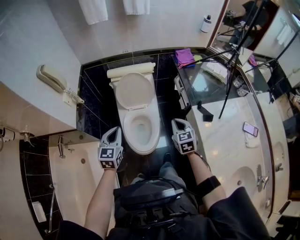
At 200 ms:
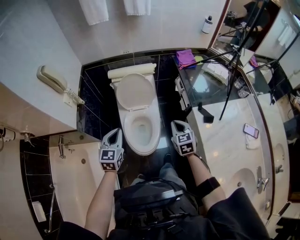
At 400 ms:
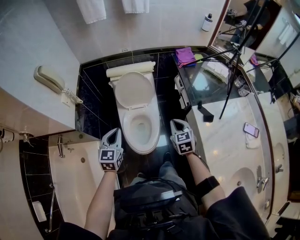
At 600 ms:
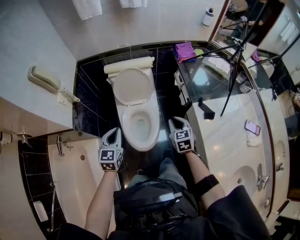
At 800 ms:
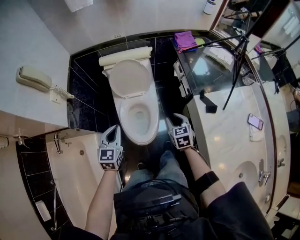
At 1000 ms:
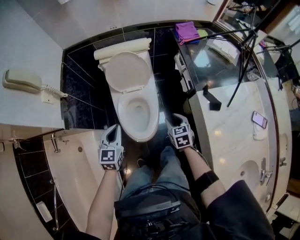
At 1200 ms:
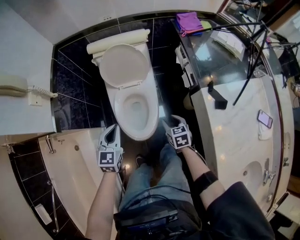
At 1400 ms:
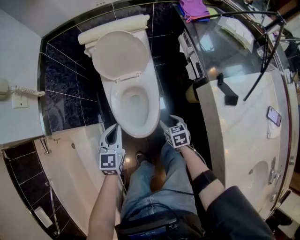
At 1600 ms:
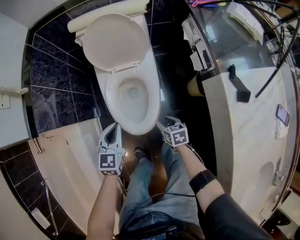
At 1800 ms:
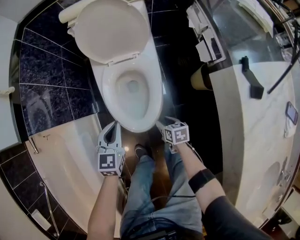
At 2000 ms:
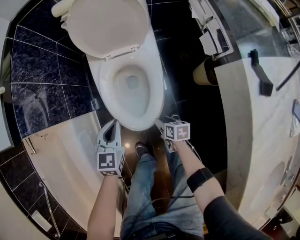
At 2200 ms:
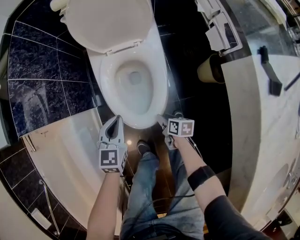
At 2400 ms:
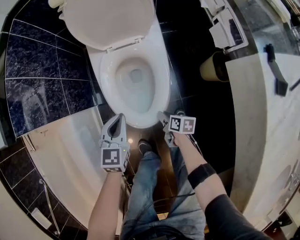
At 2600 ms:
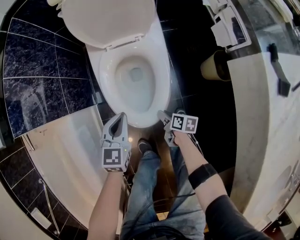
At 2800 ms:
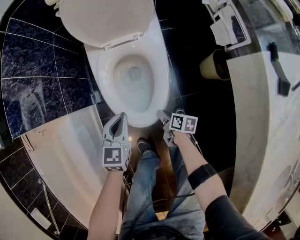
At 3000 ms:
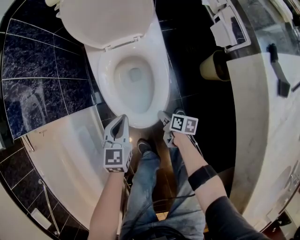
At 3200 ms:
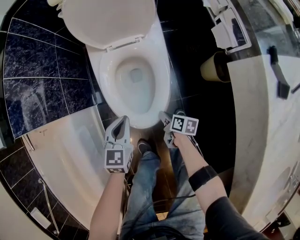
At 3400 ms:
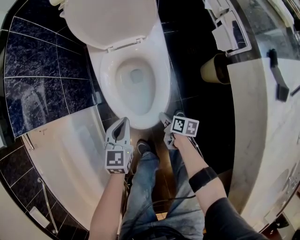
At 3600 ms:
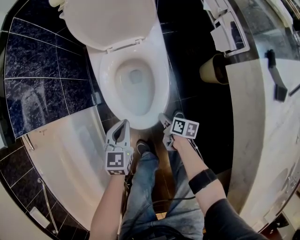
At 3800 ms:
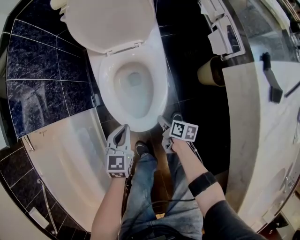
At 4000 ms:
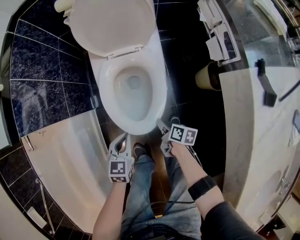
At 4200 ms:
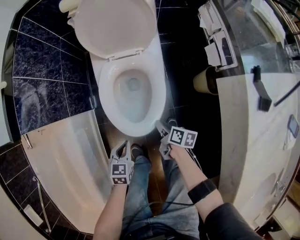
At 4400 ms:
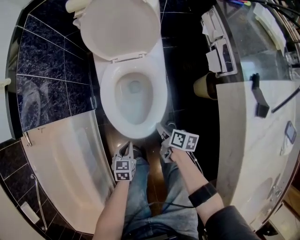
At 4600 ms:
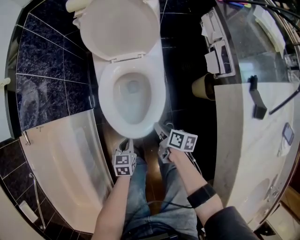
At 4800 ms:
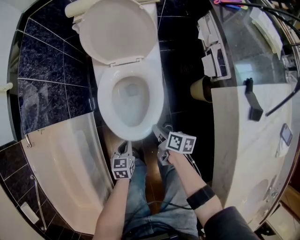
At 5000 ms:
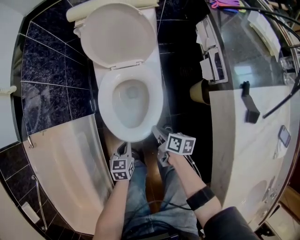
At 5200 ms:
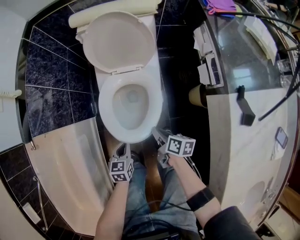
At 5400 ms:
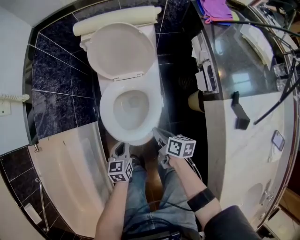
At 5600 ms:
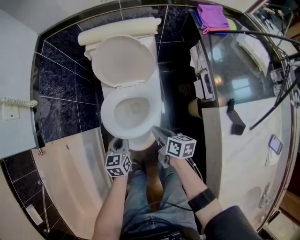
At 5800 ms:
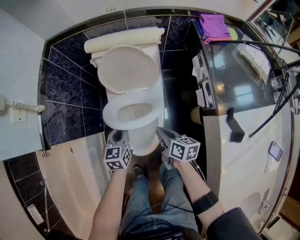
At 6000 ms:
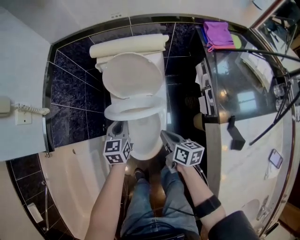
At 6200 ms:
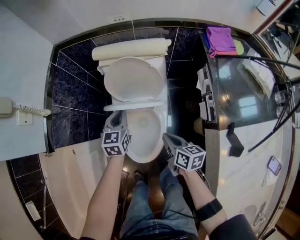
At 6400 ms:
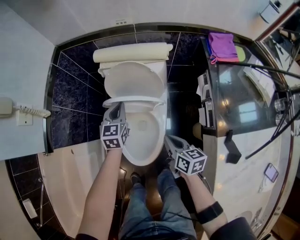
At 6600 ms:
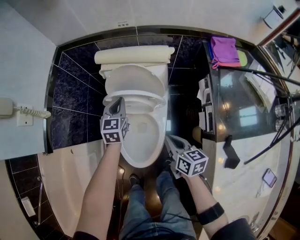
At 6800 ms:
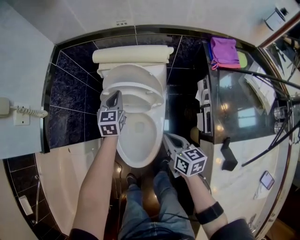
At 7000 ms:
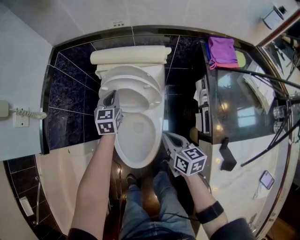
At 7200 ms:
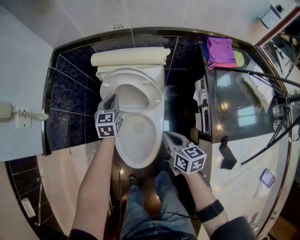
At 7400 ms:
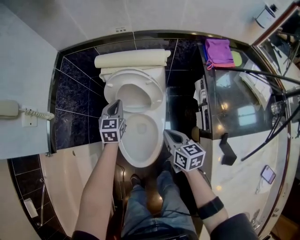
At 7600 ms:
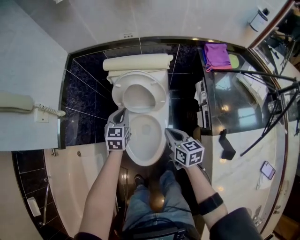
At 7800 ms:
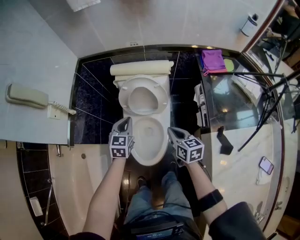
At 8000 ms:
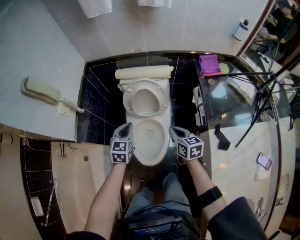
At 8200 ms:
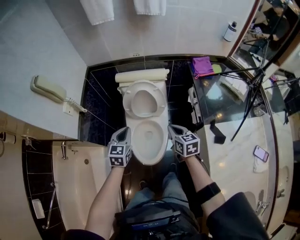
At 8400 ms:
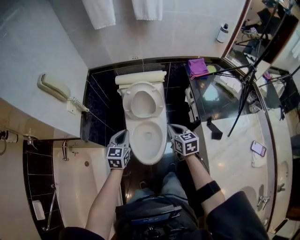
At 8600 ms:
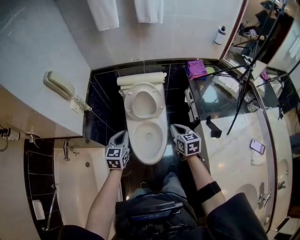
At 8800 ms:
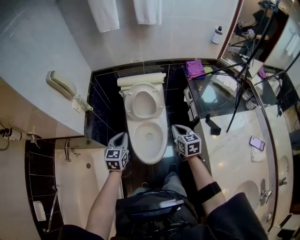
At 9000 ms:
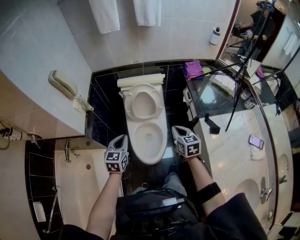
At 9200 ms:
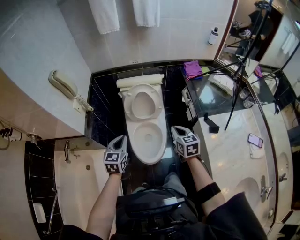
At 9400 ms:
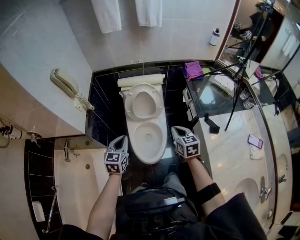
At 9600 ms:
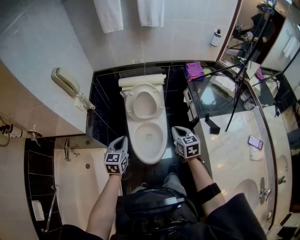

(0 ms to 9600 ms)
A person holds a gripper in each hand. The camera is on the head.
0 ms - 1600 ms: Both grippers travel together downward, roughly 35 cm. The right gripper turns by some 40 degrees, and opens its fingers.
1600 ms - 3200 ms: The two grippers go approximately 15 cm downward. The right gripper changes its angle by about 40 degrees, and closes its fingers.
3200 ms - 4800 ms: The left gripper heads backward, covering some 5 cm, and swivels some 20 degrees; the right gripper is displaced upward by approximately 15 cm.
4800 ms - 6400 ms: The left gripper is displaced forward and upward by approximately 40 cm, and rotates approximately 30 degrees. Meanwhile the right gripper shifts about 25 cm upward and forward, and rotates approximately 30 degrees.
6400 ms - 8000 ms: The right gripper moves upward, about 15 cm, while the left gripper goes approximately 20 cm upward and backward.
8000 ms - 9600 ms: The left gripper heads backward, upward and to the left, covering approximately 20 cm. The right gripper travels backward and upward by some 15 cm.

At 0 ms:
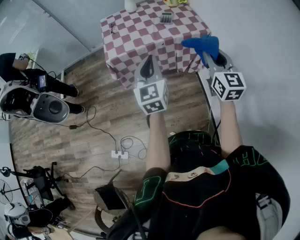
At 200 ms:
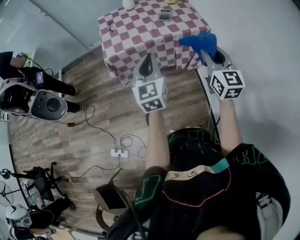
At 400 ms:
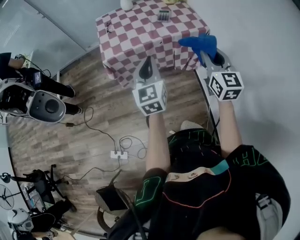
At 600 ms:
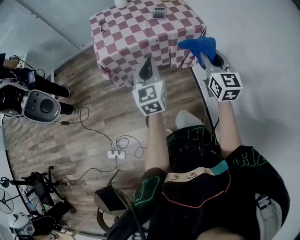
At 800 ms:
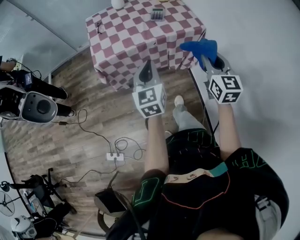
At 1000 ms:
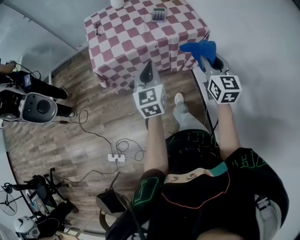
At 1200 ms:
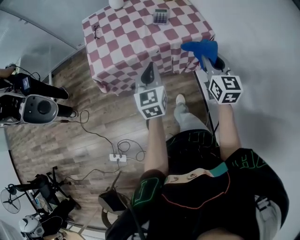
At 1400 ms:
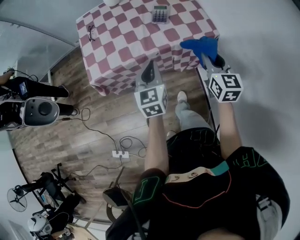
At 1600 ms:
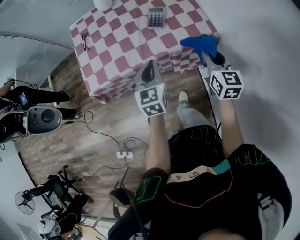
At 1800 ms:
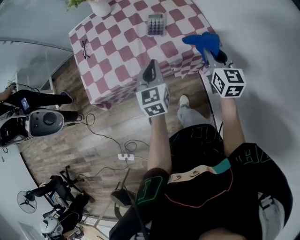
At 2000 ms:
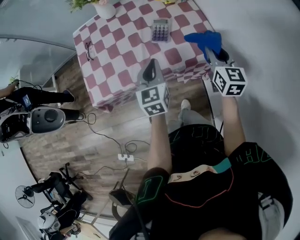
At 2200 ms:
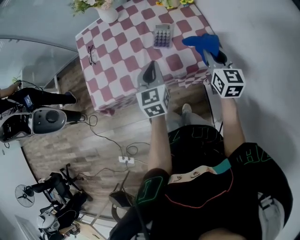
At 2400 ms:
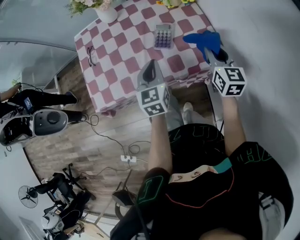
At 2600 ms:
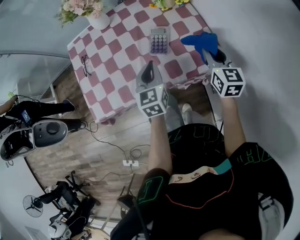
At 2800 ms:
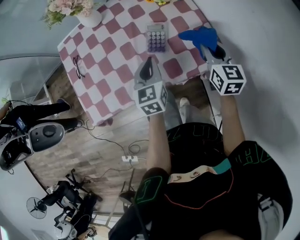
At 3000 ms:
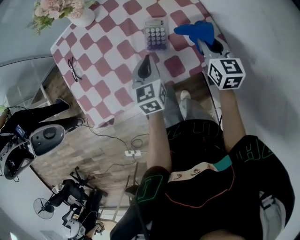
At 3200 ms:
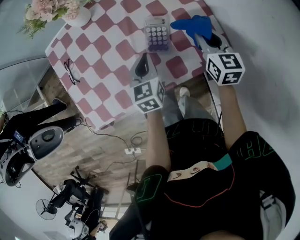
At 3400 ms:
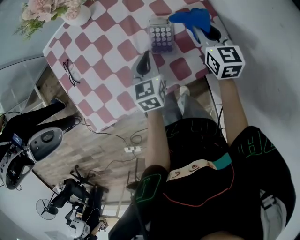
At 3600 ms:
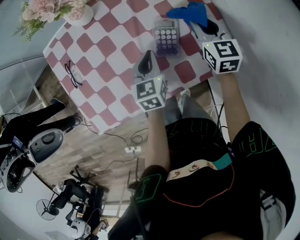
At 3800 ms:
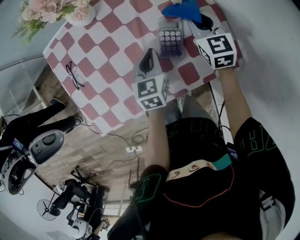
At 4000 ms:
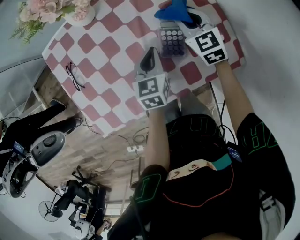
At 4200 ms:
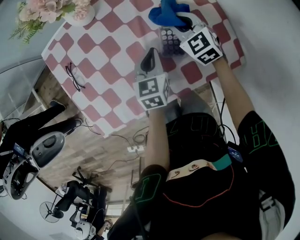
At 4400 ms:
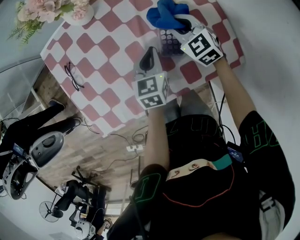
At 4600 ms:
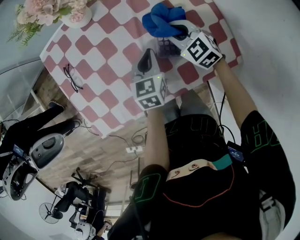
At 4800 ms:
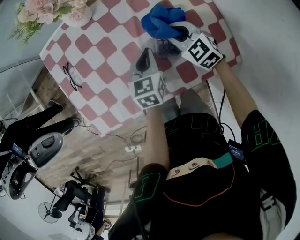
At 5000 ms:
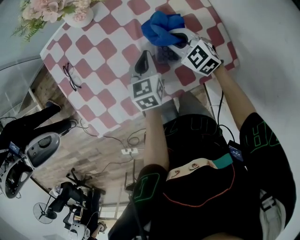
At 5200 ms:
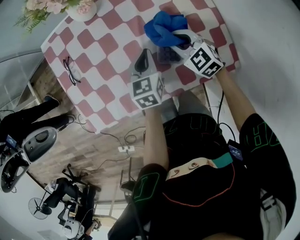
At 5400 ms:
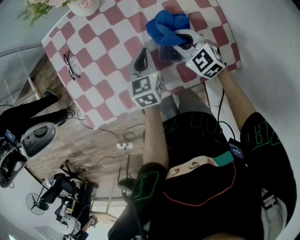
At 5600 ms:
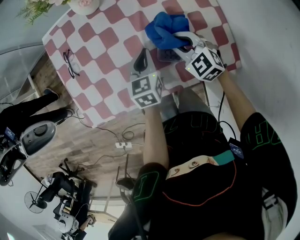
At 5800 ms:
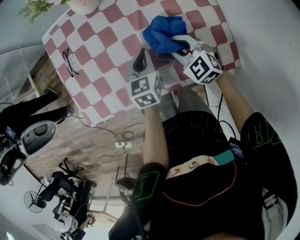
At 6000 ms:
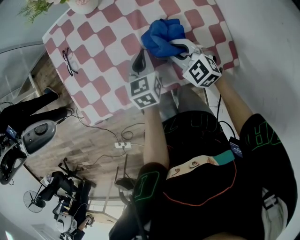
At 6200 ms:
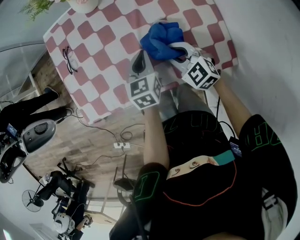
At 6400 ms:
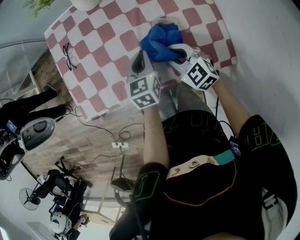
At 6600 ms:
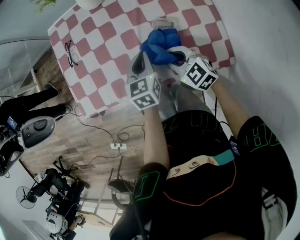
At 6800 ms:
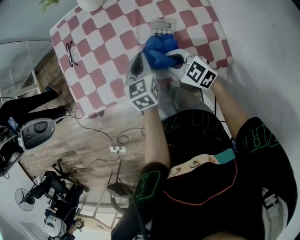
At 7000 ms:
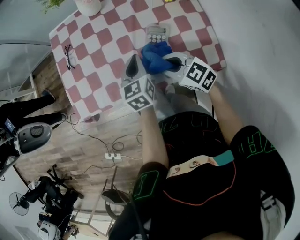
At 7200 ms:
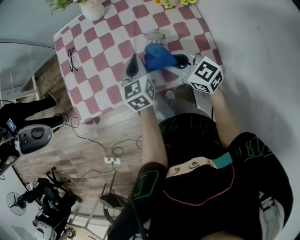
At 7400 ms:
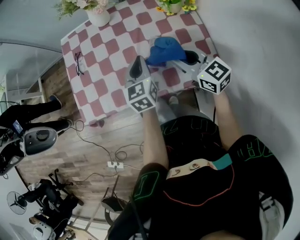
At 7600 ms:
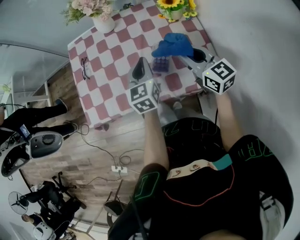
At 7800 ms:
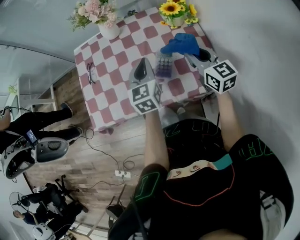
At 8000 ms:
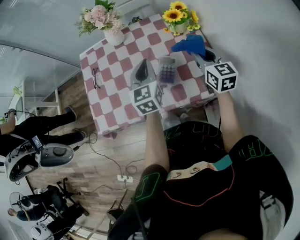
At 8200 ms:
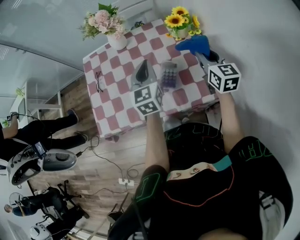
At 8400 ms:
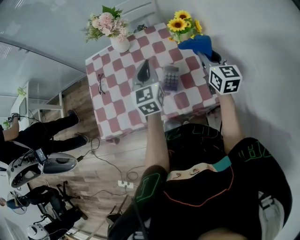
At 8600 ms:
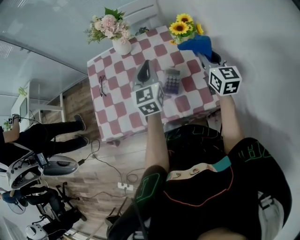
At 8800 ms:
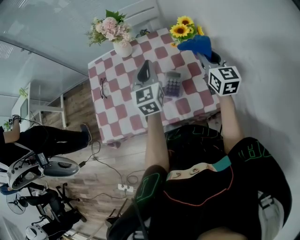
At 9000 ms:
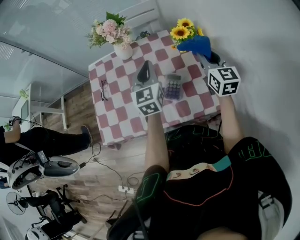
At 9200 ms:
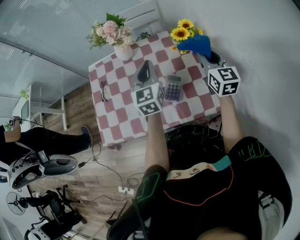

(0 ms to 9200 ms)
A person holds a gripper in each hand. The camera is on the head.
0 ms - 1600 ms: The two grippers go about 30 cm forward and downward. The left gripper swivels approximately 20 degrees.
1600 ms - 3000 ms: Both grippers travel together forward, about 20 cm.
3000 ms - 4600 ms: The right gripper moves to the left, forward and downward, roughly 20 cm, and swivels some 50 degrees; the left gripper travels forward by some 5 cm.
4600 ms - 6200 ms: The right gripper travels backward by about 10 cm.
6200 ms - 7600 ms: The left gripper travels upward by roughly 10 cm, while the right gripper shifts approximately 15 cm upward and to the right, and turns by approximately 40 degrees.
7600 ms - 9200 ms: The left gripper goes roughly 10 cm upward and forward. The right gripper goes roughly 15 cm forward, to the right and upward, and rotates approximately 30 degrees.

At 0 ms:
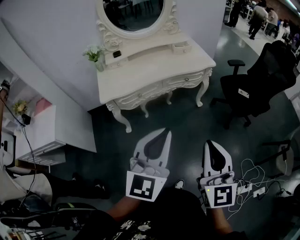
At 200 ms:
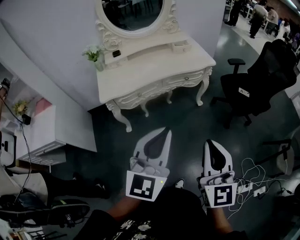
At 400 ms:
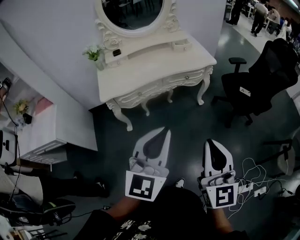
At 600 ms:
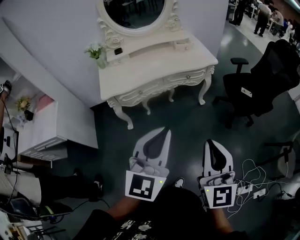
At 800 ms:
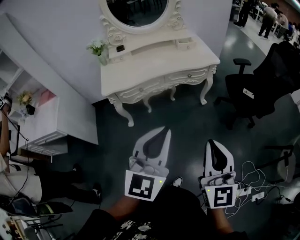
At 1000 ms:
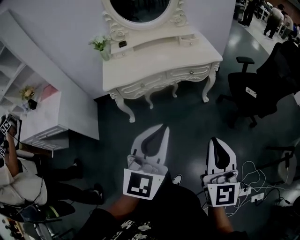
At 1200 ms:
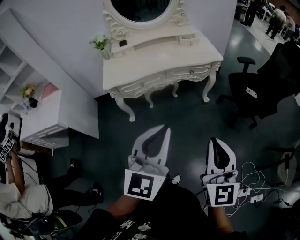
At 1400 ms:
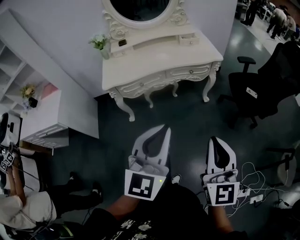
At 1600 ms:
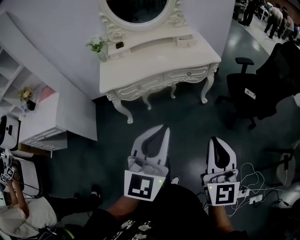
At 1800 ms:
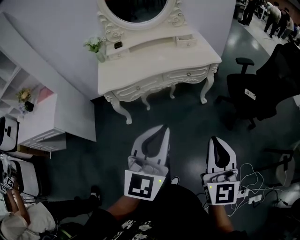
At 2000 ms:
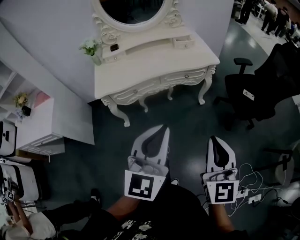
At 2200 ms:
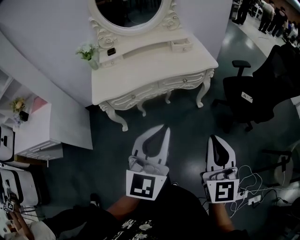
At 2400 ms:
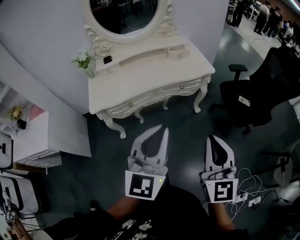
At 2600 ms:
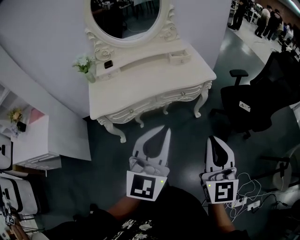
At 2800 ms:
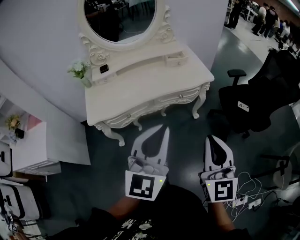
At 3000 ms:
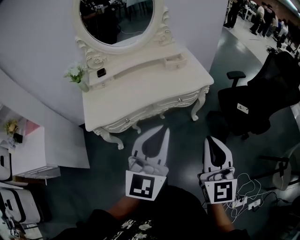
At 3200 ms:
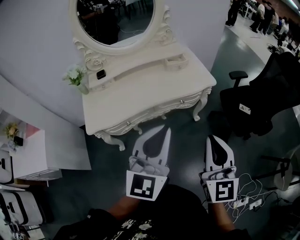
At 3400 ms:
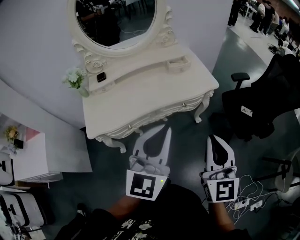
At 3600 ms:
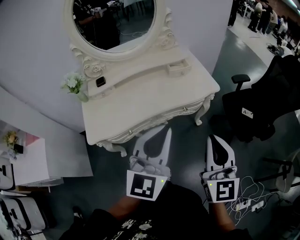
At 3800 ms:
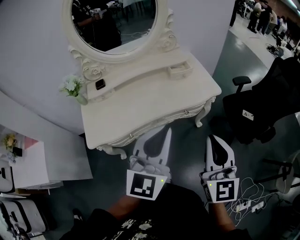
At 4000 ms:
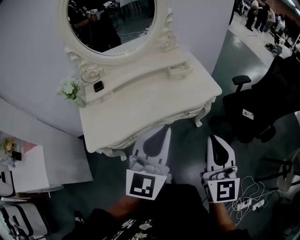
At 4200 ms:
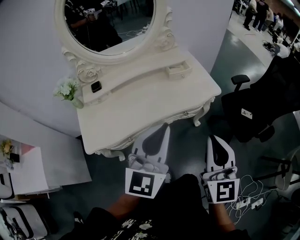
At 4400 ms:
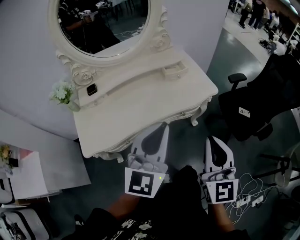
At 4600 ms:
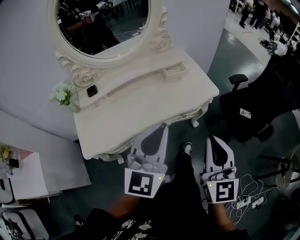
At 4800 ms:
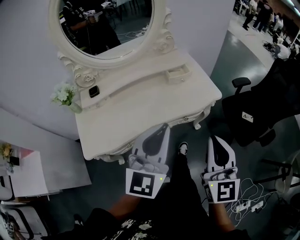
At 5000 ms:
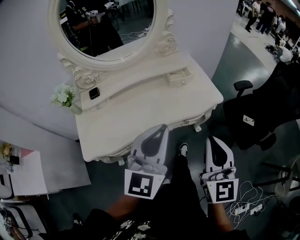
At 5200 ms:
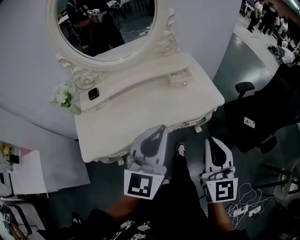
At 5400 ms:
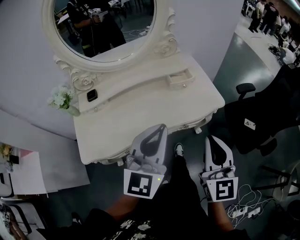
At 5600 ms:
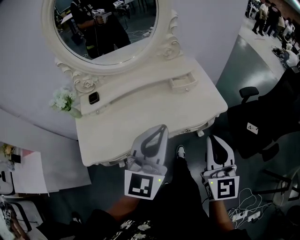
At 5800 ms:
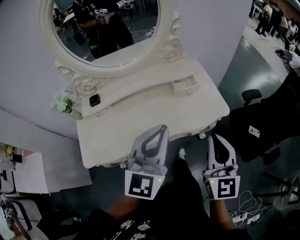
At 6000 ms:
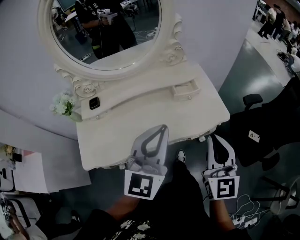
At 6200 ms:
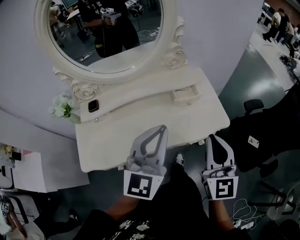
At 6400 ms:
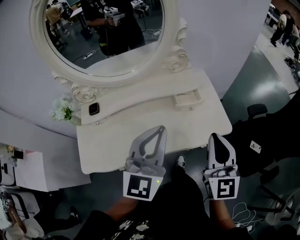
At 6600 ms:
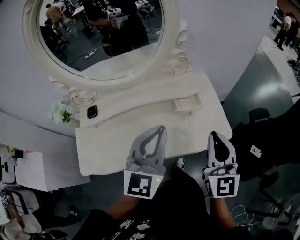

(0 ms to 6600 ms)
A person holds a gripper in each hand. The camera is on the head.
0 ms - 1600 ms: The two grippers go roughly 5 cm to the right.
1600 ms - 3200 ms: Both grippers travel together forward, roughly 20 cm.
3200 ms - 5000 ms: Both grippers travel together forward, some 15 cm.
5000 ms - 6600 ms: The grippers both shift forward by roughly 20 cm.